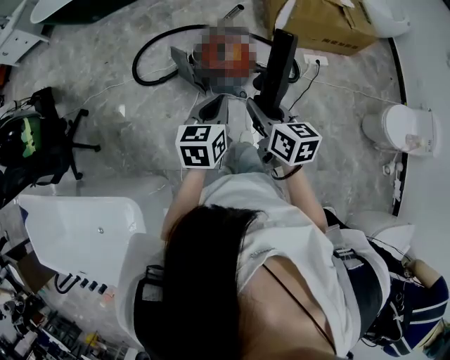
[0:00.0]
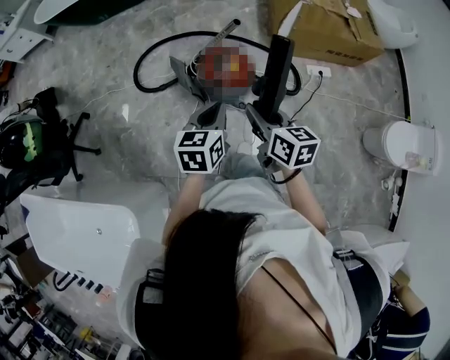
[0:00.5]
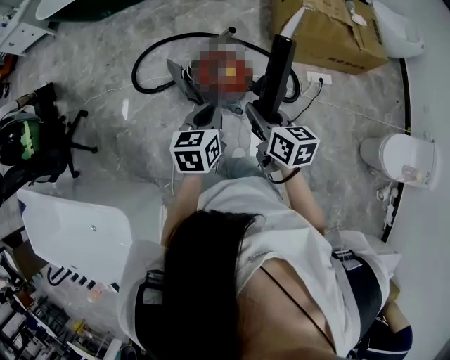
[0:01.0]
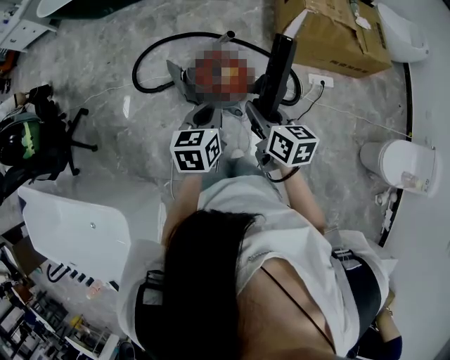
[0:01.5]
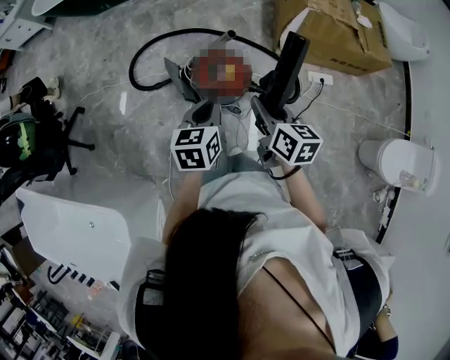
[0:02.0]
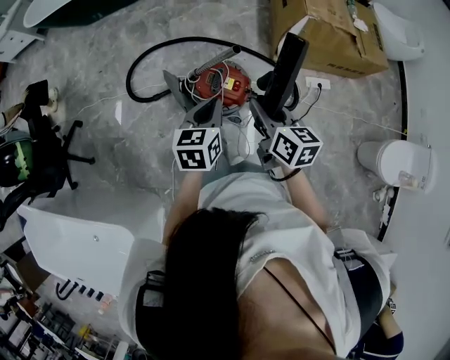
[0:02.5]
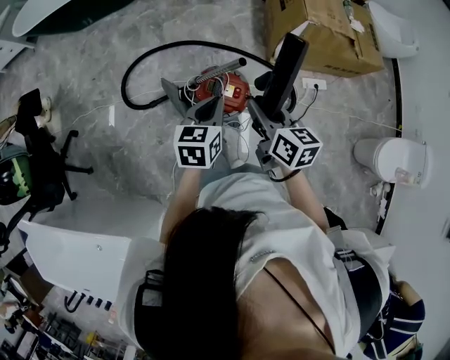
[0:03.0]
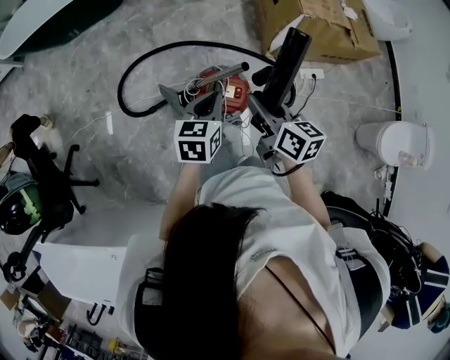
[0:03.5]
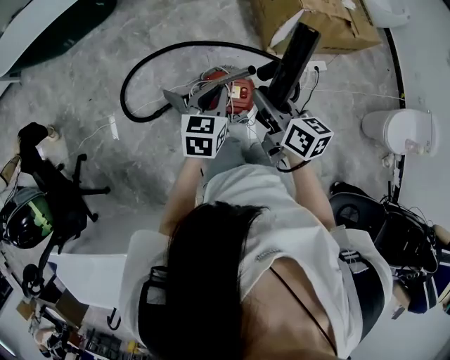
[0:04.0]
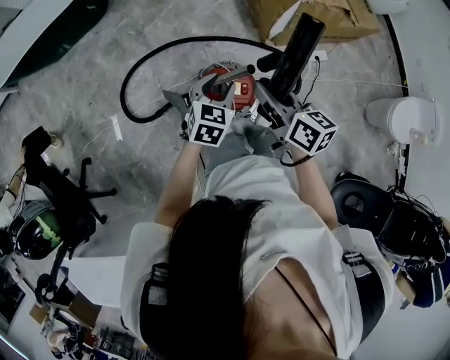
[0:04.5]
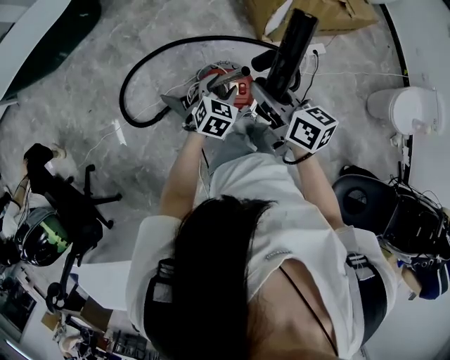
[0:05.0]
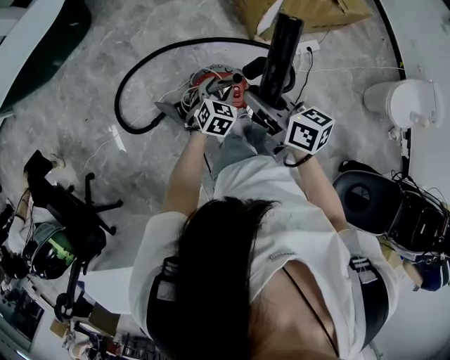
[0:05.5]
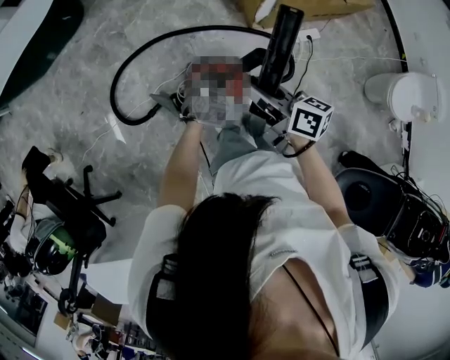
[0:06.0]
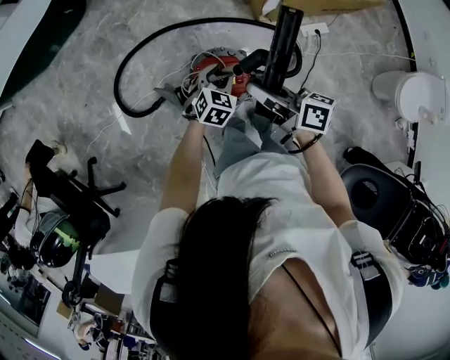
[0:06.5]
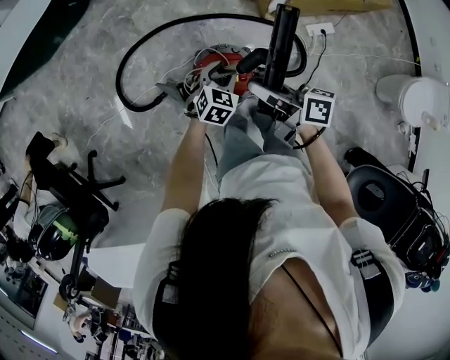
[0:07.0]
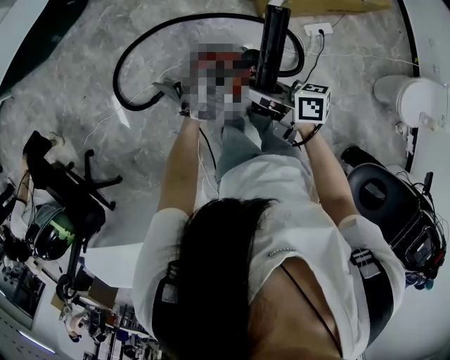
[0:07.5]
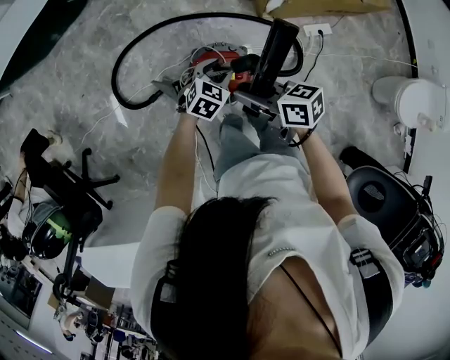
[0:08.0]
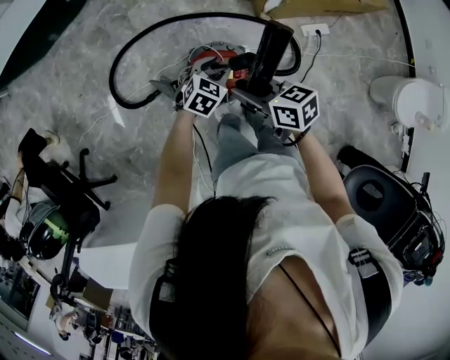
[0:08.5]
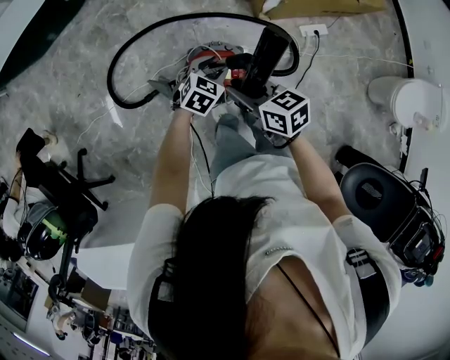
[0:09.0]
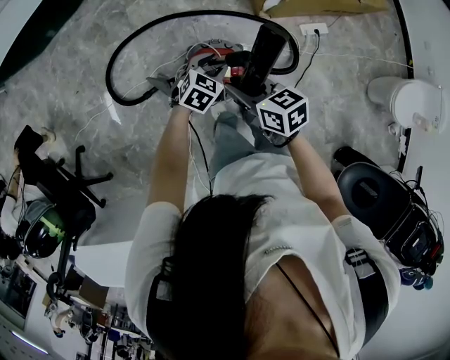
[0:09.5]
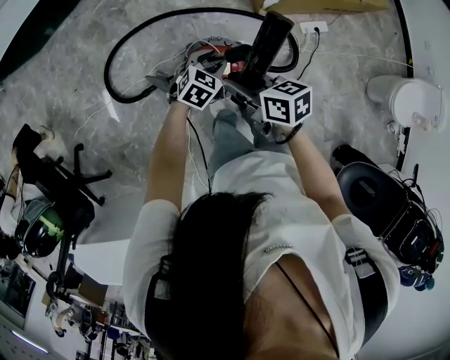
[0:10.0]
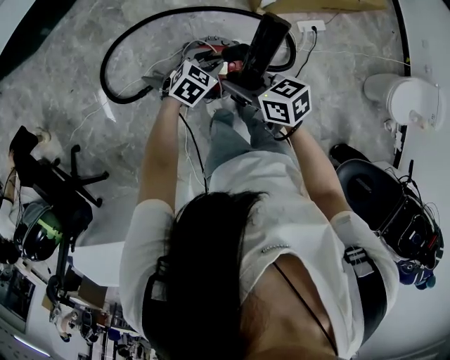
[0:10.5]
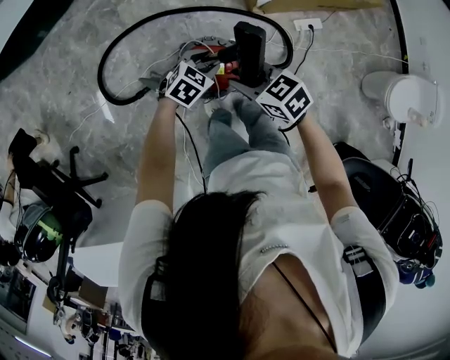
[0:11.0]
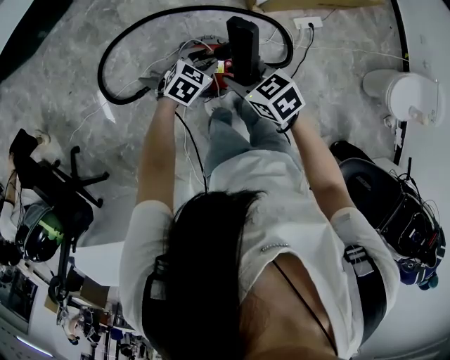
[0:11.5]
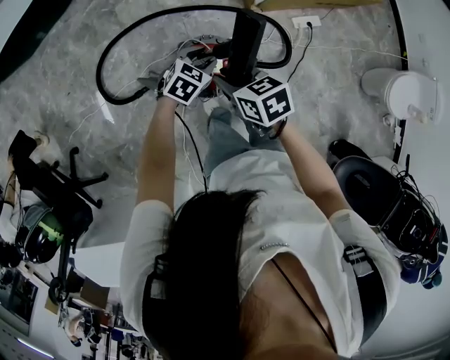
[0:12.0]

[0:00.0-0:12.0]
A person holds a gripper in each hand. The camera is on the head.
0:00.0 to 0:02.0: The grippers both shift forward and to the right by some 20 cm.
0:02.0 to 0:04.0: The left gripper travels forward by about 20 cm, and swivels some 20 degrees; the right gripper moves forward and to the left, about 20 cm.
0:04.0 to 0:06.0: The right gripper shifts roughly 5 cm forward; the left gripper goes approximately 20 cm downward, forward and to the right, rotates about 30 degrees, and opens.
0:06.0 to 0:08.0: The right gripper travels downward by approximately 5 cm, and rotates approximately 30 degrees.
0:08.0 to 0:10.0: There are only small adjustments of the grippers.

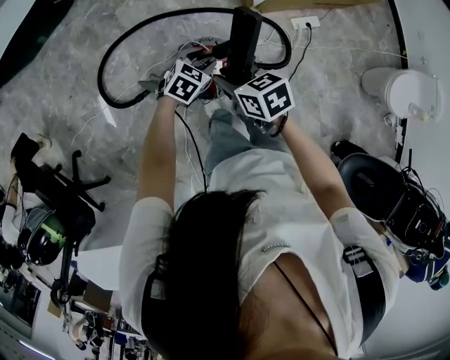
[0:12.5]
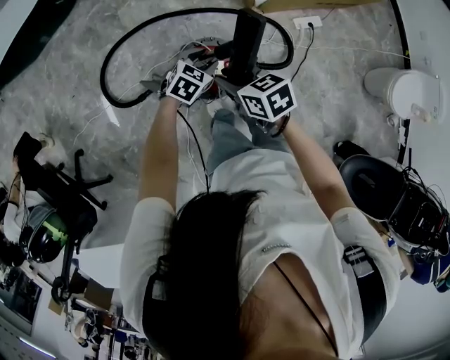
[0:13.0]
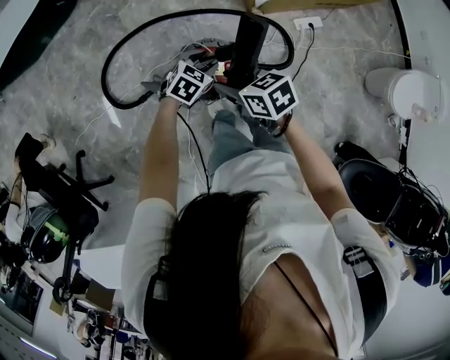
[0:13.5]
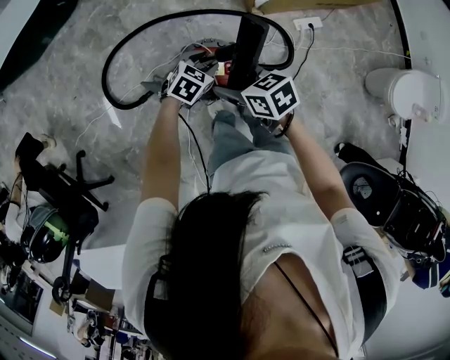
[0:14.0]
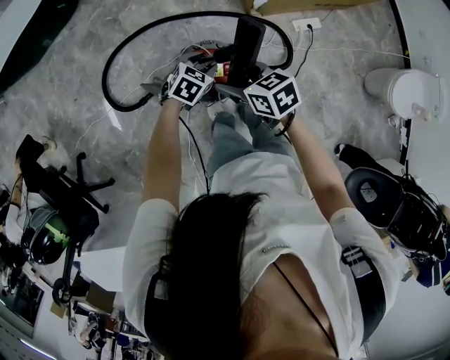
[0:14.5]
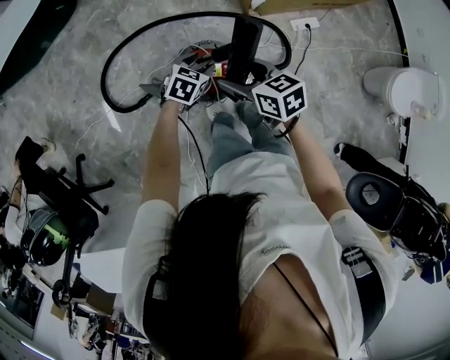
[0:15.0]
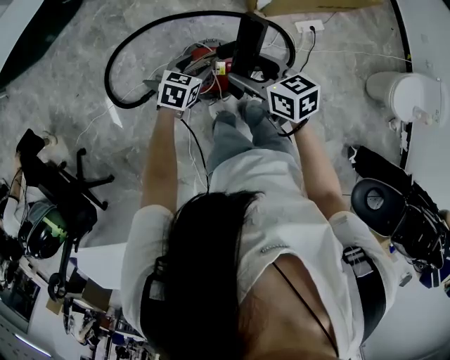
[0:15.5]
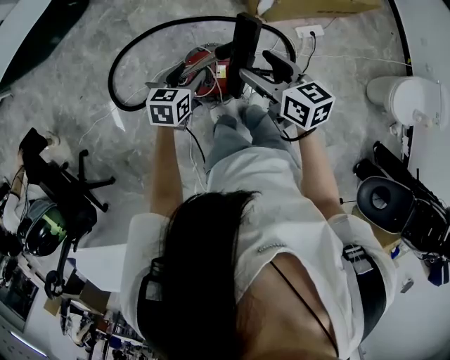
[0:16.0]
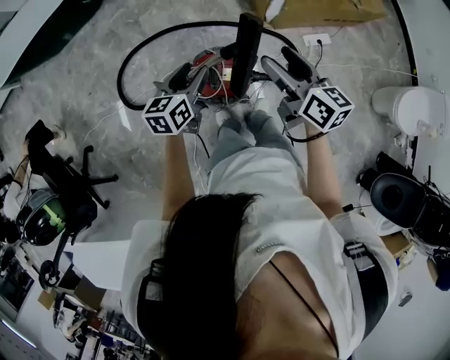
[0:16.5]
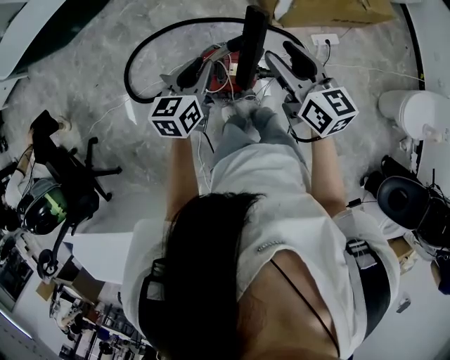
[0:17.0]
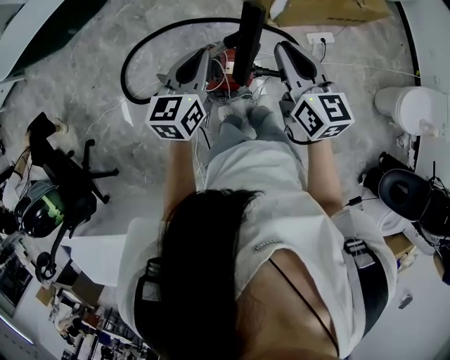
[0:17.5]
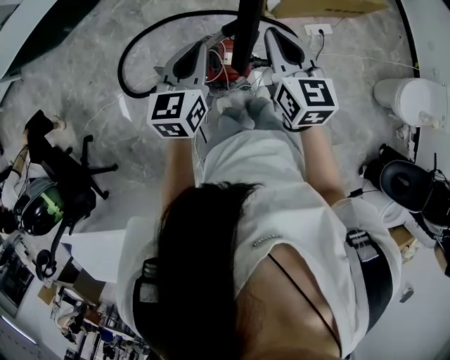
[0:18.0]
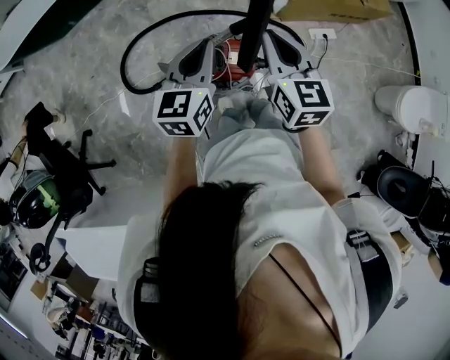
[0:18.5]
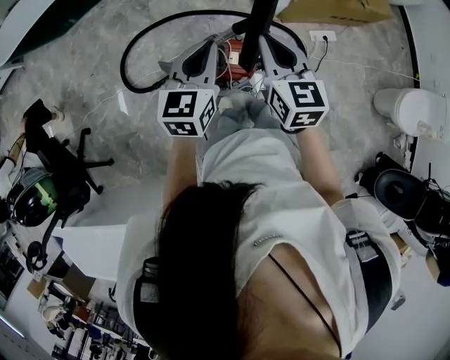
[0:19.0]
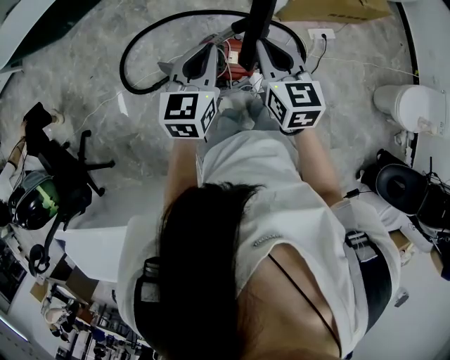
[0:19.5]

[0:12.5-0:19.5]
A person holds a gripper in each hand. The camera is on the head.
0:12.5 to 0:14.5: The right gripper opens its fingers.
0:14.5 to 0:16.0: The left gripper moves upward and to the left, approximately 10 cm, and changes its angle by some 30 degrees, while the right gripper goes approximately 10 cm upward and to the right, and swivels some 20 degrees.
0:16.0 to 0:17.5: The left gripper travels upward by about 15 cm, turns by approximately 30 degrees, and closes. Meanwhile the right gripper moves upward, about 10 cm, changes its angle by approximately 20 degrees, and closes up.
0:17.5 to 0:19.5: The right gripper moves to the left, approximately 5 cm.

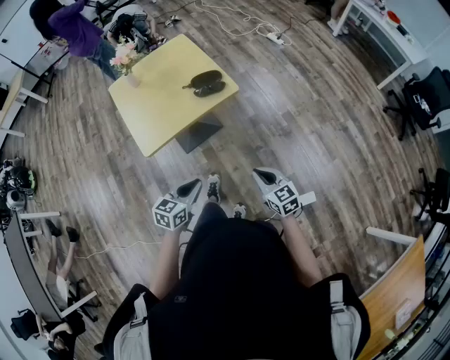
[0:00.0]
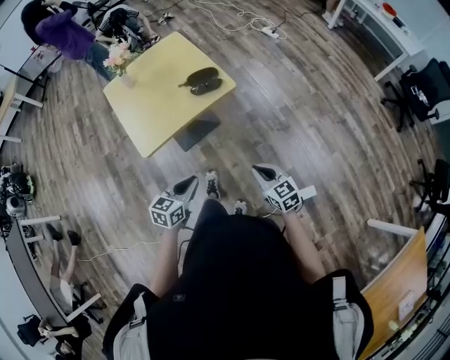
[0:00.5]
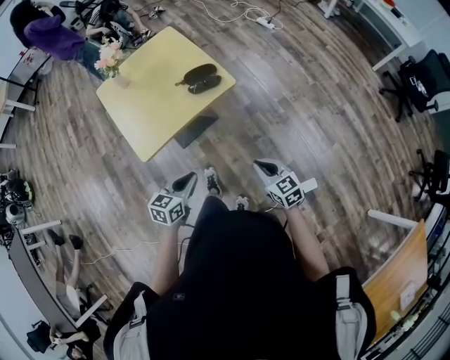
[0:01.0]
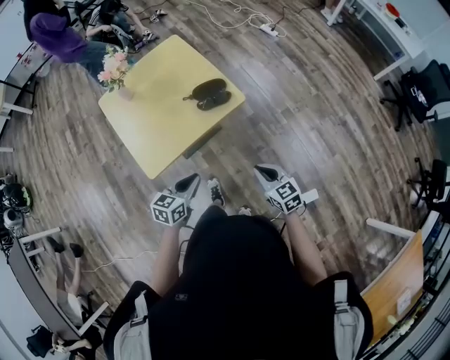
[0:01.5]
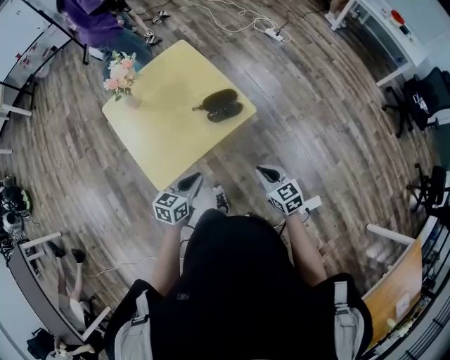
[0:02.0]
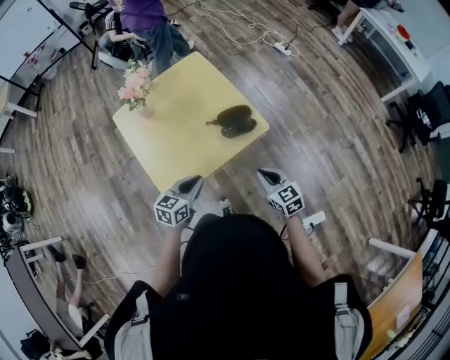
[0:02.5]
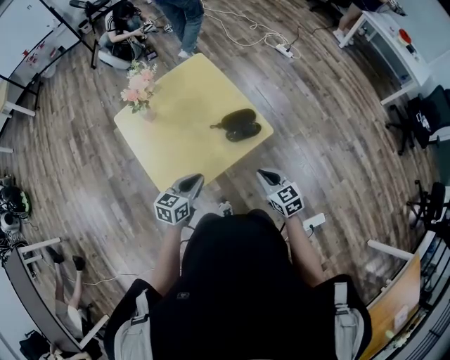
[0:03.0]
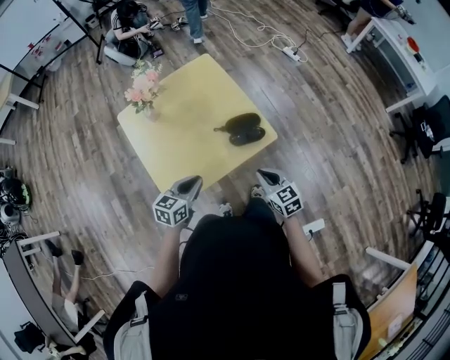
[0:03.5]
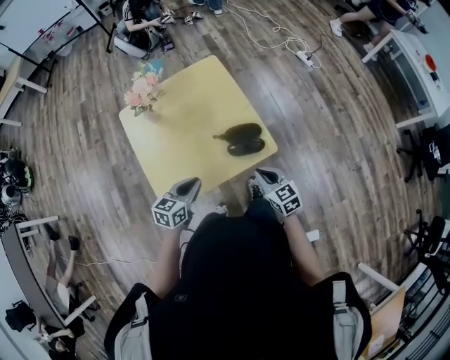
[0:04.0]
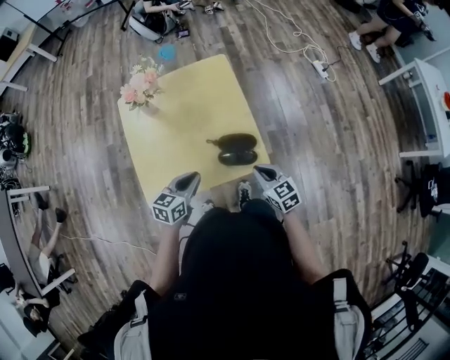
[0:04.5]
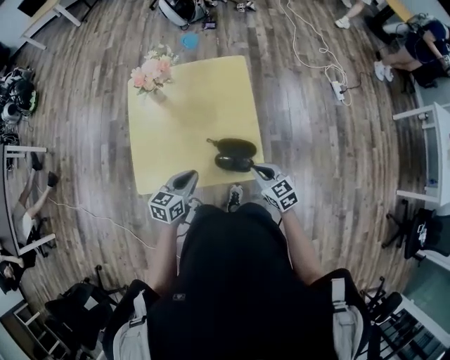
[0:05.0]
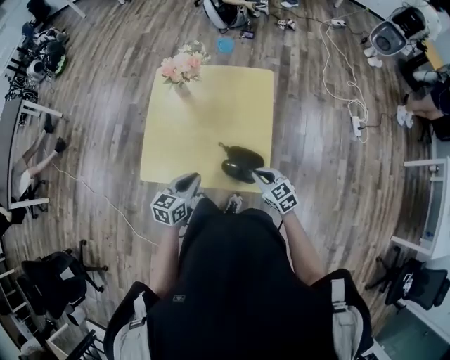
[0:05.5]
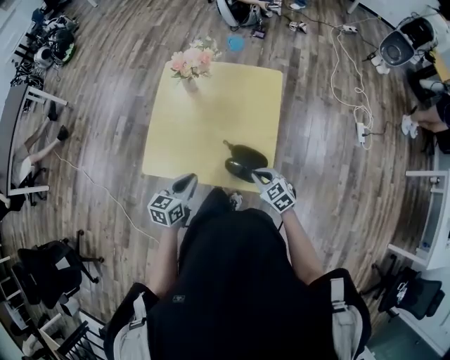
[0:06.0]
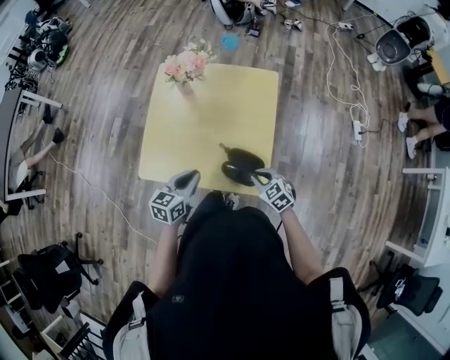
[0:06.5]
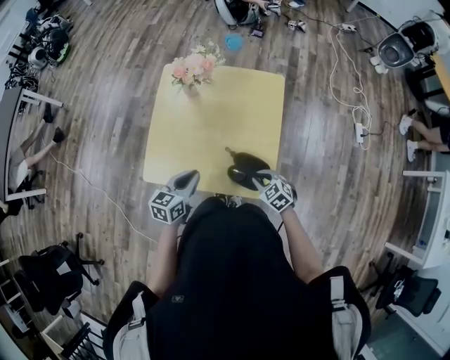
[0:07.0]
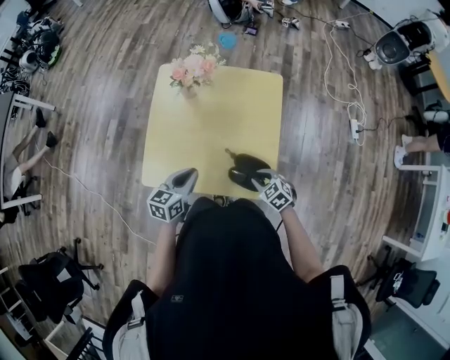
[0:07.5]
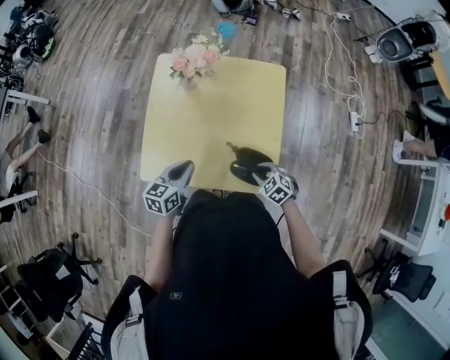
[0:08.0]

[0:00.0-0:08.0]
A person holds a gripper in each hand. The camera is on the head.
0:00.0 to 0:02.0: The grippers both shift forward and to the left by roughly 25 cm.
0:02.0 to 0:04.0: The right gripper heads forward, covering some 20 cm. The left gripper moves forward and to the left, about 15 cm.
0:04.0 to 0:06.0: The left gripper rotates some 40 degrees. The right gripper ends up about 15 cm from where it was, and rotates approximately 50 degrees.
0:06.0 to 0:08.0: The right gripper heads downward, covering roughly 5 cm, and opens. The left gripper travels forward by roughly 10 cm.
